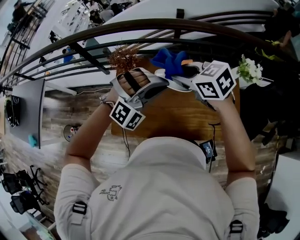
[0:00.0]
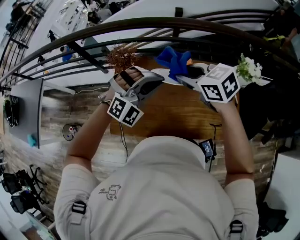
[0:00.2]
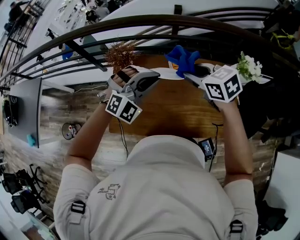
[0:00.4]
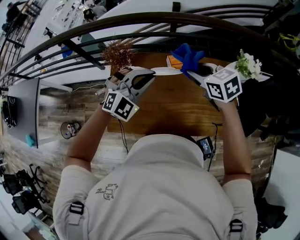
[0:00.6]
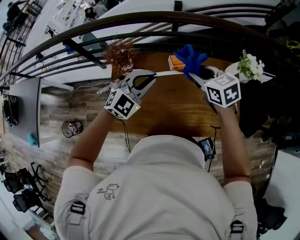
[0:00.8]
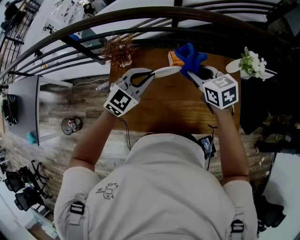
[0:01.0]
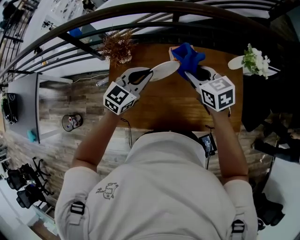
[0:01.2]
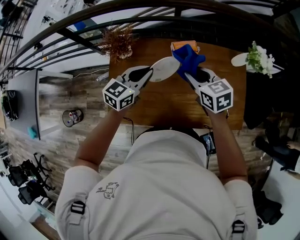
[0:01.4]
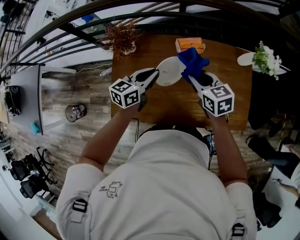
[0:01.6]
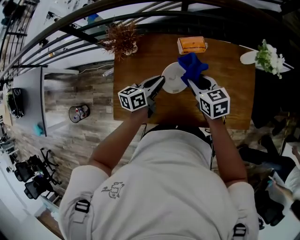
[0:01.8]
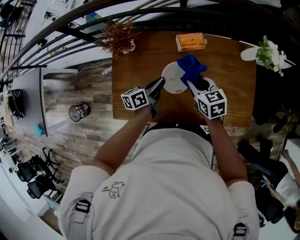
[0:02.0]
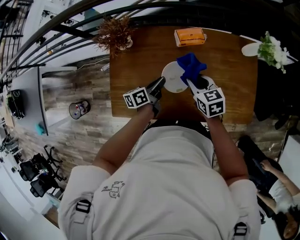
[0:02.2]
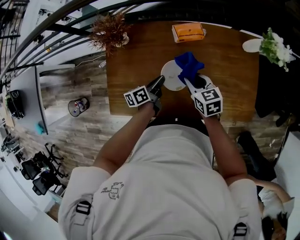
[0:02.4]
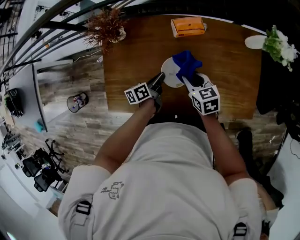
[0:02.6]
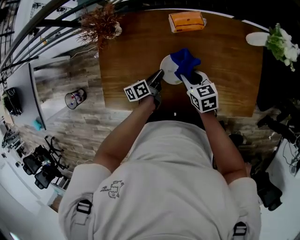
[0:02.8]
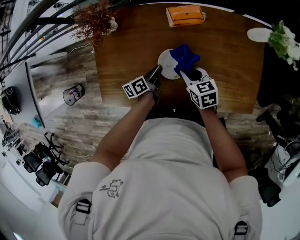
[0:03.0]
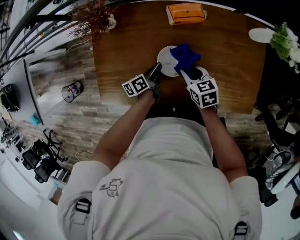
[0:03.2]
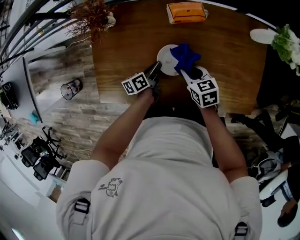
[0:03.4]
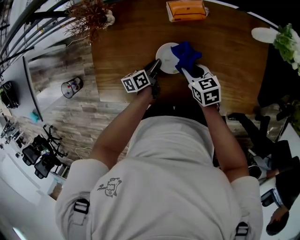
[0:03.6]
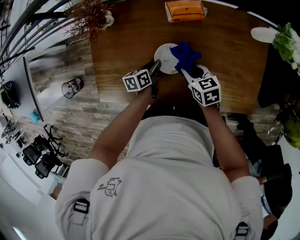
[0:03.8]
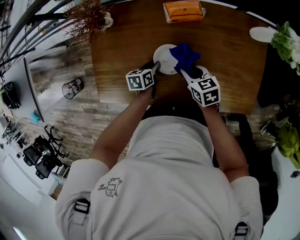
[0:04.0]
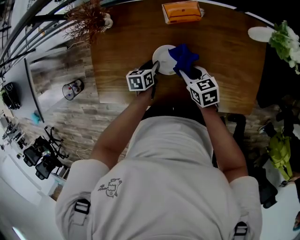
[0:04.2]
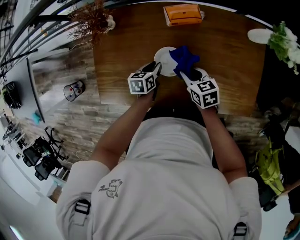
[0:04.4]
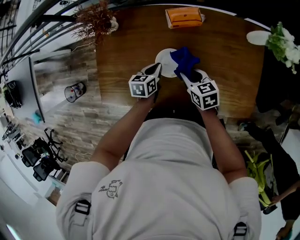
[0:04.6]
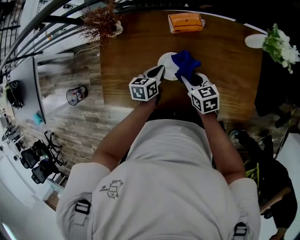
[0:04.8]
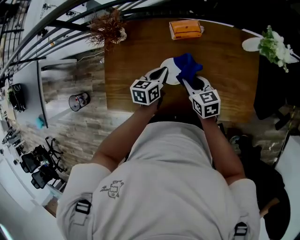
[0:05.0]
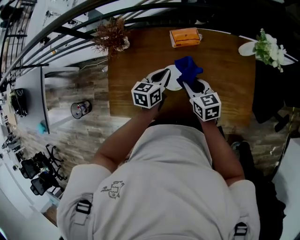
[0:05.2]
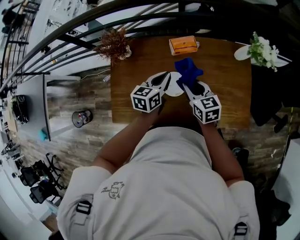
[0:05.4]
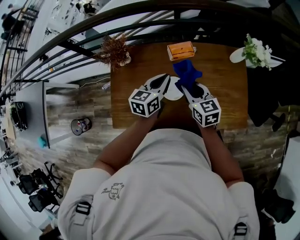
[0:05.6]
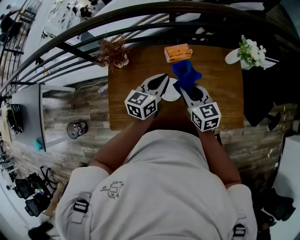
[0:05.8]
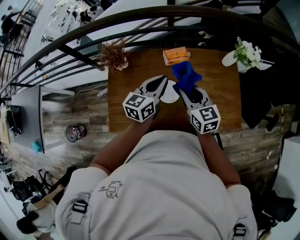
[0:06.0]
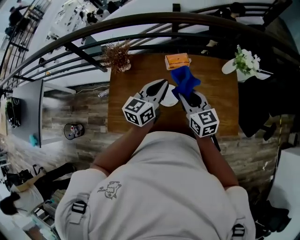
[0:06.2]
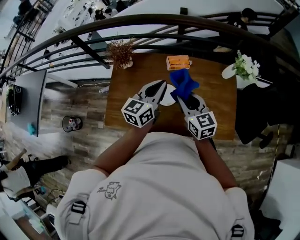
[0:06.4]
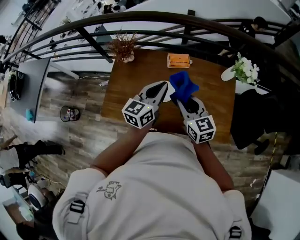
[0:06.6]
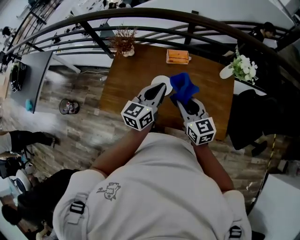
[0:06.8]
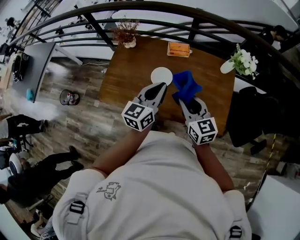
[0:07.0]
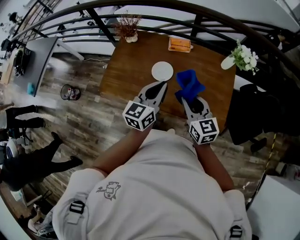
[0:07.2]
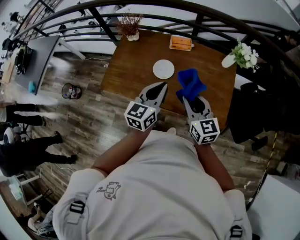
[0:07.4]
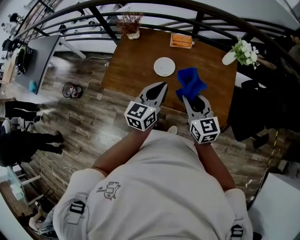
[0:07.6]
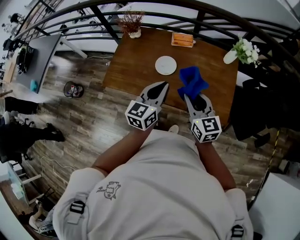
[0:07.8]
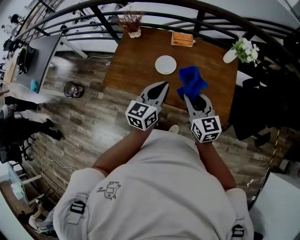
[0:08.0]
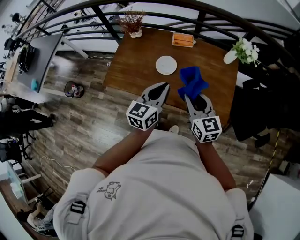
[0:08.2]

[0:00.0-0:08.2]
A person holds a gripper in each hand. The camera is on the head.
0.0 to 1.6 s: The right gripper heads downward and to the right, covering roughly 20 cm, and changes its angle by roughly 20 degrees. Meanwhile the left gripper is displaced downward and forward by approximately 20 cm, and rotates around the line of its fingers by approximately 110 degrees, counterclockwise from behind.
1.6 to 3.2 s: The grippers both shift downward by approximately 20 cm. The left gripper rolls counterclockwise, seen from behind, by approximately 50 degrees.
3.2 to 5.0 s: The right gripper moves upward, some 5 cm; the left gripper heads upward, covering some 15 cm, swivels about 40 degrees, and opens, then closes again.
5.0 to 6.6 s: The right gripper is displaced upward and backward by some 20 cm, and rotates approximately 30 degrees, while the left gripper moves upward, about 25 cm, and rotates some 30 degrees.
6.6 to 8.2 s: The grippers both shift backward by about 15 cm.

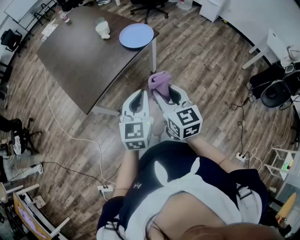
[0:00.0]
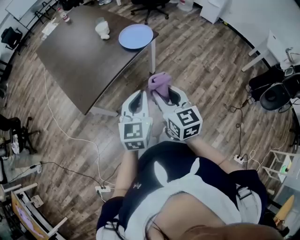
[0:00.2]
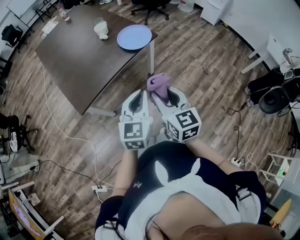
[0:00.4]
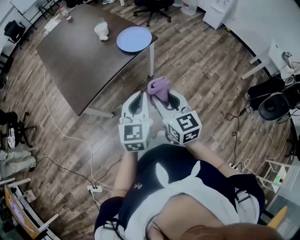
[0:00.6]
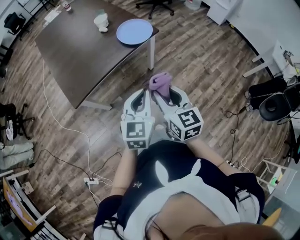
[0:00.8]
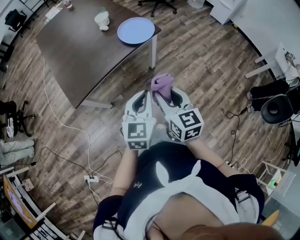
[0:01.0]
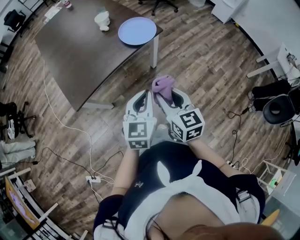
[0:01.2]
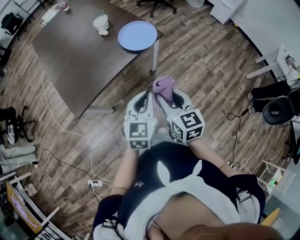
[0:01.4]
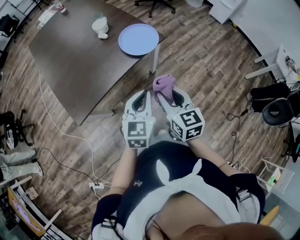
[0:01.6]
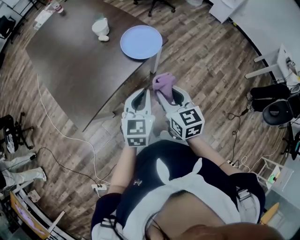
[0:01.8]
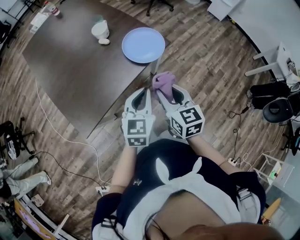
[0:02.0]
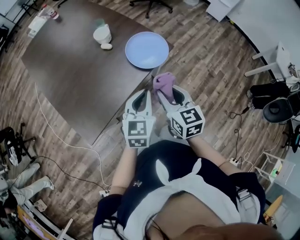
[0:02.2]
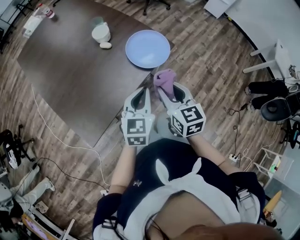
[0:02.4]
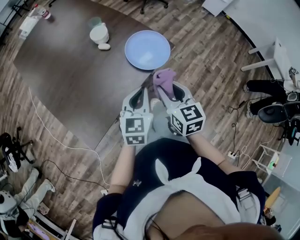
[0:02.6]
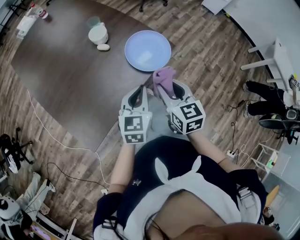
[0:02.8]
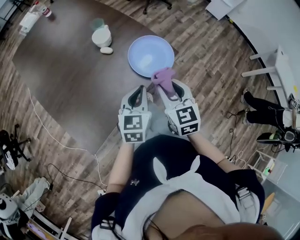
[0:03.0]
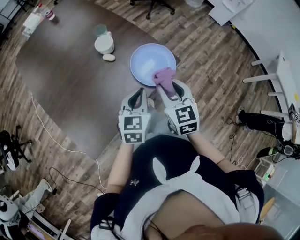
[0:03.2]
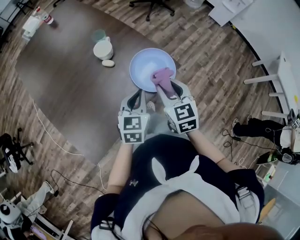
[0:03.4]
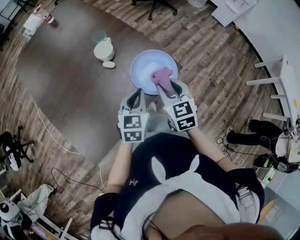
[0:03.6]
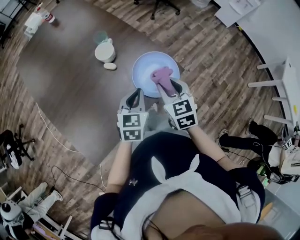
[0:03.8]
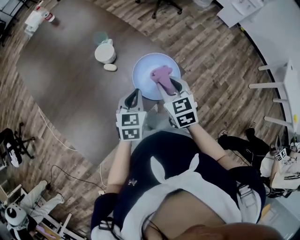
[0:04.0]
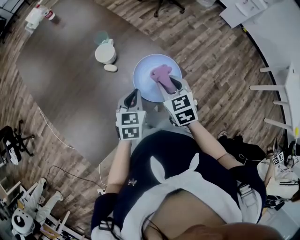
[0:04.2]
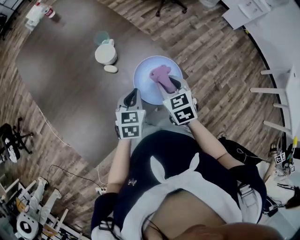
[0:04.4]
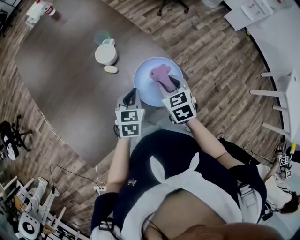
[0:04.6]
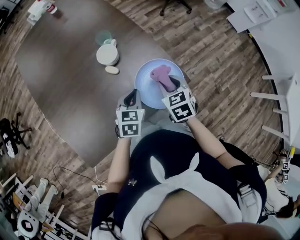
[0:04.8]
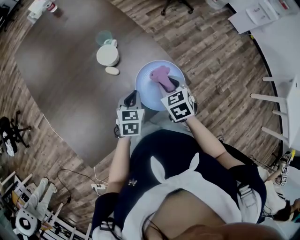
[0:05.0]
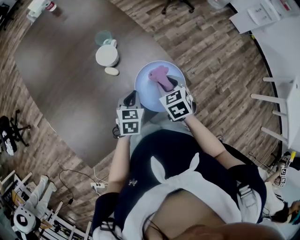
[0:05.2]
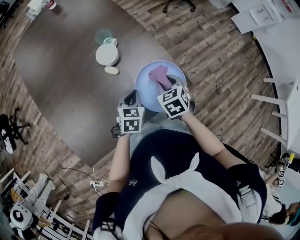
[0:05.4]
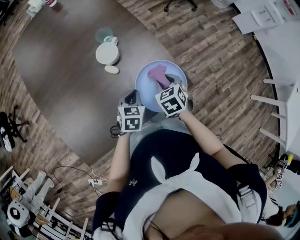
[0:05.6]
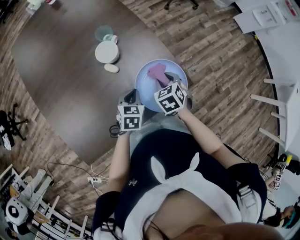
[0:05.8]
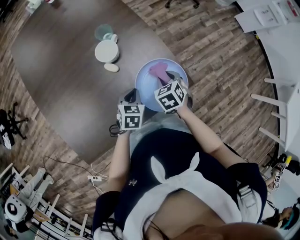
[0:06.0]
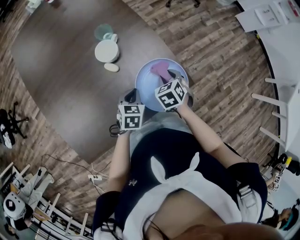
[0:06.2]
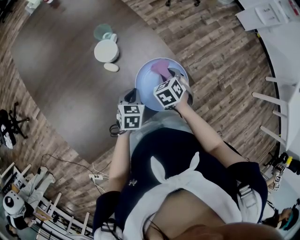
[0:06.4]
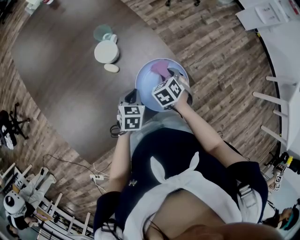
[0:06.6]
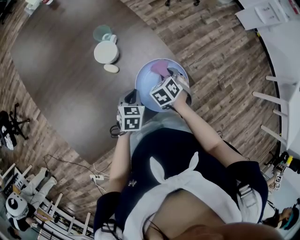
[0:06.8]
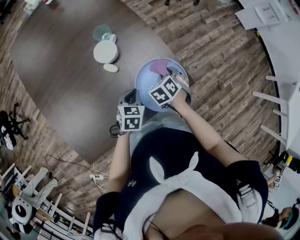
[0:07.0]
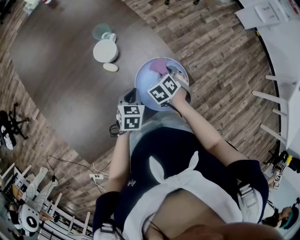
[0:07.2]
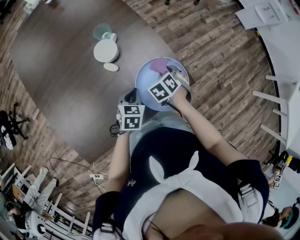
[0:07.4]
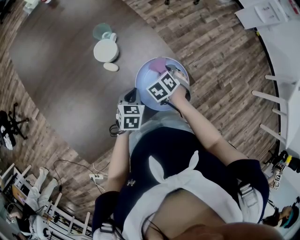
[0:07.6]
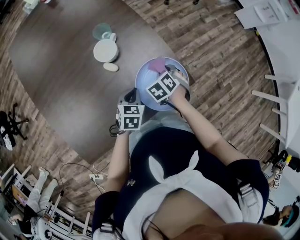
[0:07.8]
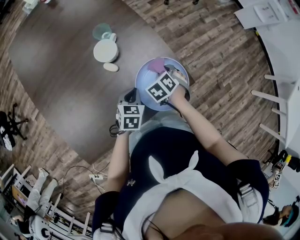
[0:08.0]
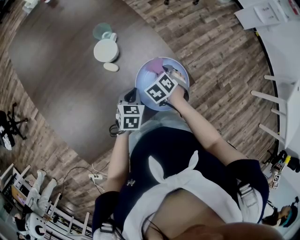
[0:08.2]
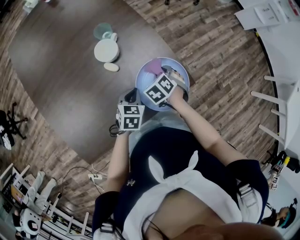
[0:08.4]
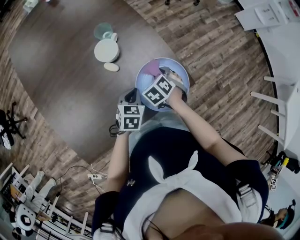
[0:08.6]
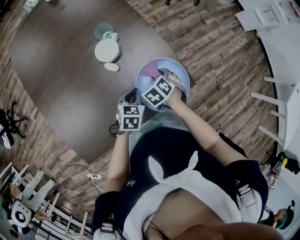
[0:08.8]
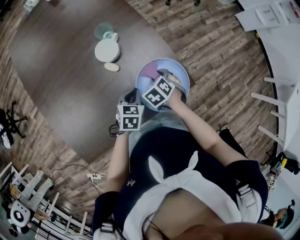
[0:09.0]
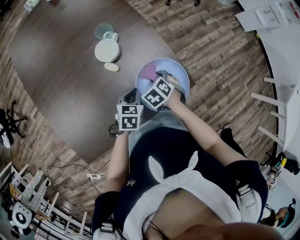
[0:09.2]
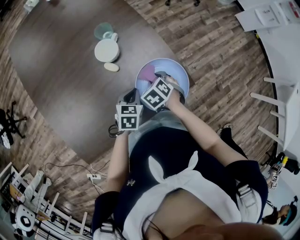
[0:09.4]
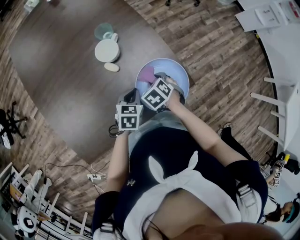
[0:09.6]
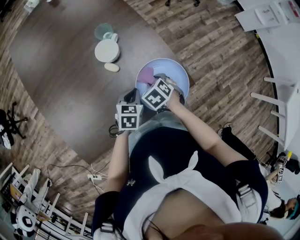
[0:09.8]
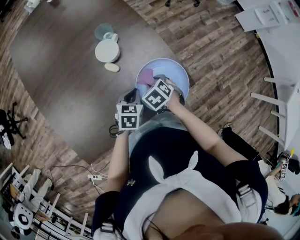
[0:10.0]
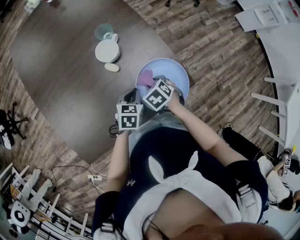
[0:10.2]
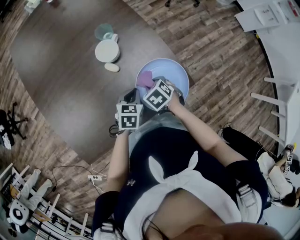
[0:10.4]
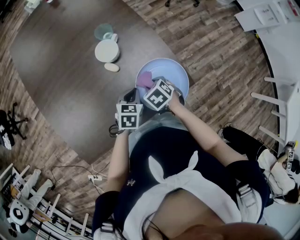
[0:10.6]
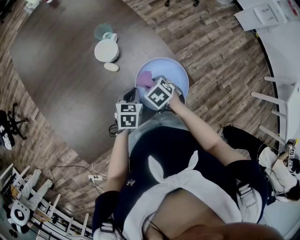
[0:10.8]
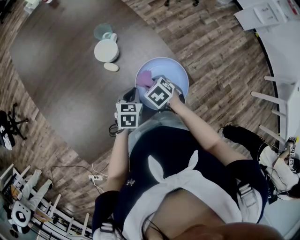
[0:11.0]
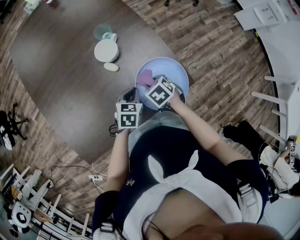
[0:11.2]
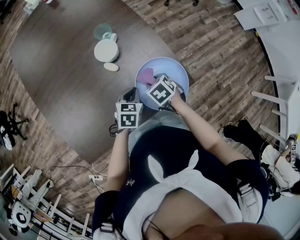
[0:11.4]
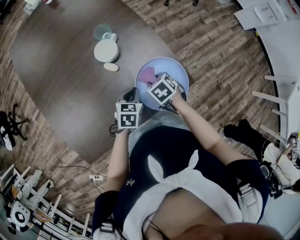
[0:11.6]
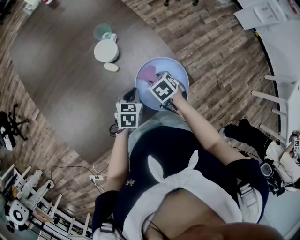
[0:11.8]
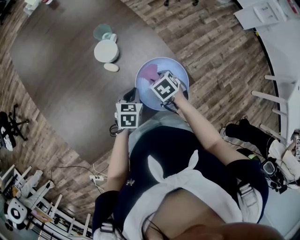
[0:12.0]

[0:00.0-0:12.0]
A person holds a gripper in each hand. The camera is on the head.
0.0 to 1.6 s: The grippers both shift forward by approximately 15 cm.
1.6 to 3.0 s: The grippers both shift forward and to the left by roughly 25 cm.
3.0 to 4.4 s: The two grippers go approximately 20 cm forward and downward.
4.4 to 6.0 s: The left gripper moves downward, some 10 cm. Meanwhile the right gripper is displaced downward and forward by about 15 cm, and rotates roughly 20 degrees.
6.0 to 9.0 s: The grippers stay close to where they were, moving slightly.
9.0 to 12.0 s: The grippers stay close to where they were, moving slightly.

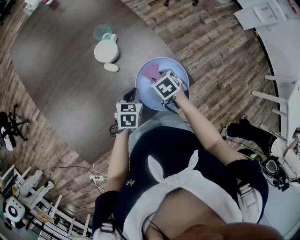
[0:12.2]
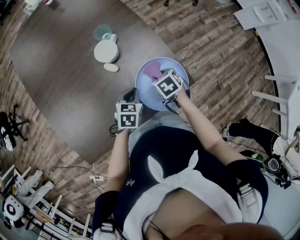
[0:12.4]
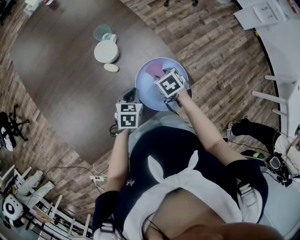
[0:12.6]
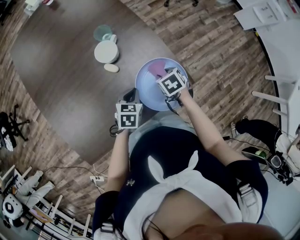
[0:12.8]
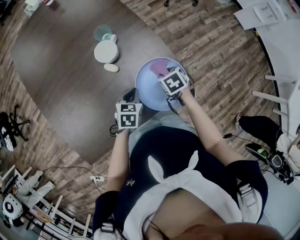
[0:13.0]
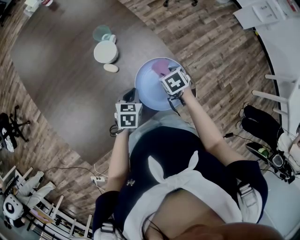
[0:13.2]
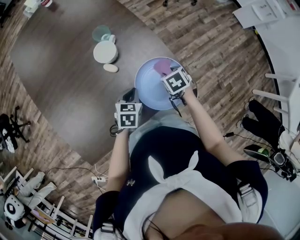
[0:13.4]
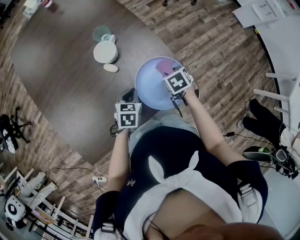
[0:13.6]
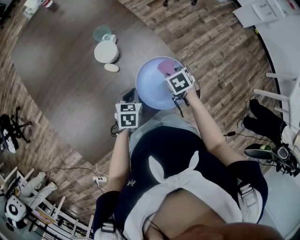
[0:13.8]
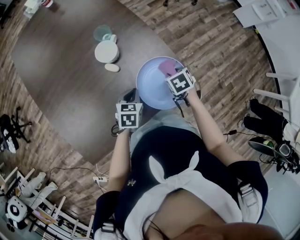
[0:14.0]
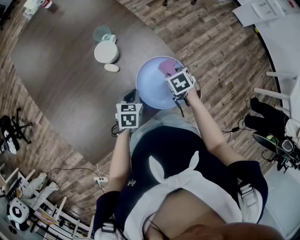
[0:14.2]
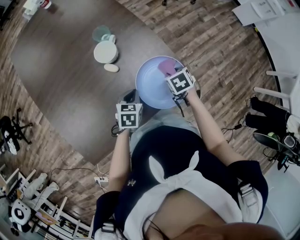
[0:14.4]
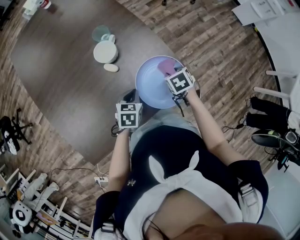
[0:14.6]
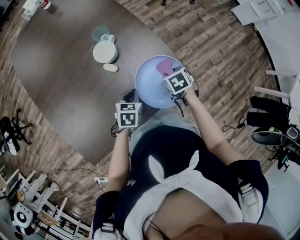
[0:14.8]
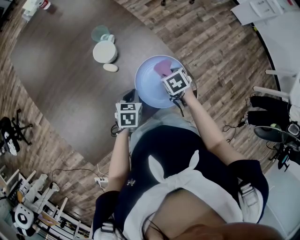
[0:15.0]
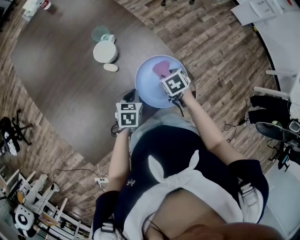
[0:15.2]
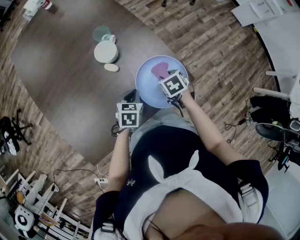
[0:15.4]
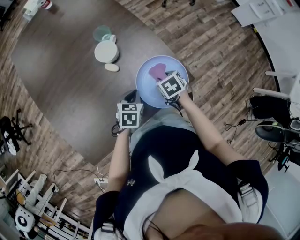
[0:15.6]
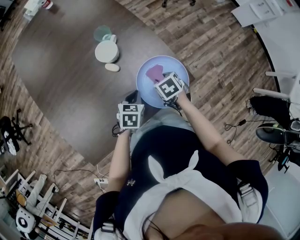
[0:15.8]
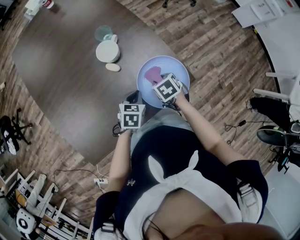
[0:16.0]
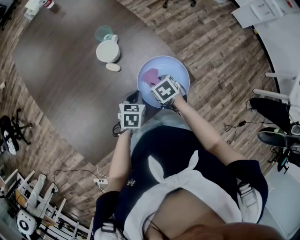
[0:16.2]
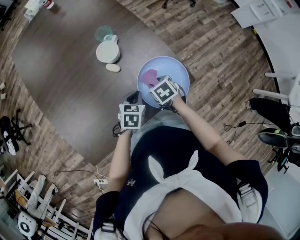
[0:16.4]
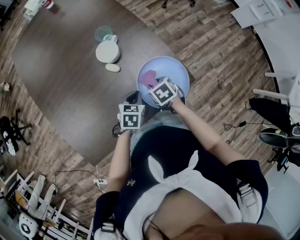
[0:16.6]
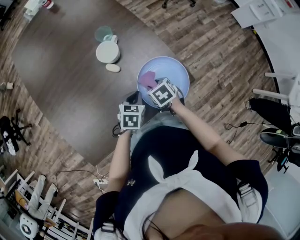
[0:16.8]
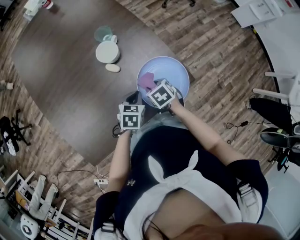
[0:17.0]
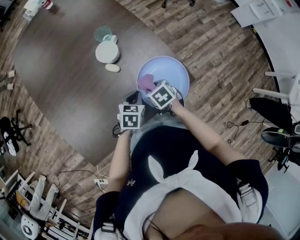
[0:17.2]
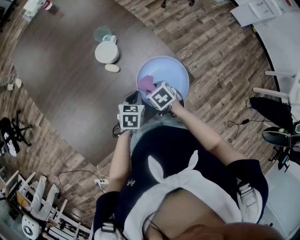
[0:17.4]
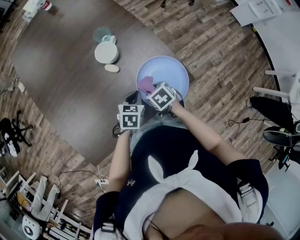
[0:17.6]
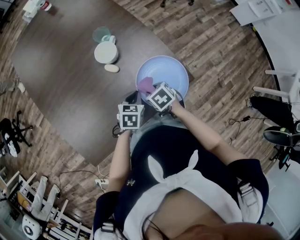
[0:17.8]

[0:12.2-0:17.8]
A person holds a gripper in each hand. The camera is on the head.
12.2 to 13.6 s: The right gripper travels to the right by roughly 5 cm.
13.6 to 15.0 s: There are only small adjustments of the grippers.
15.0 to 16.4 s: The right gripper heads to the left, covering roughly 10 cm.
16.4 to 17.8 s: The grippers stay close to where they were, moving slightly.
